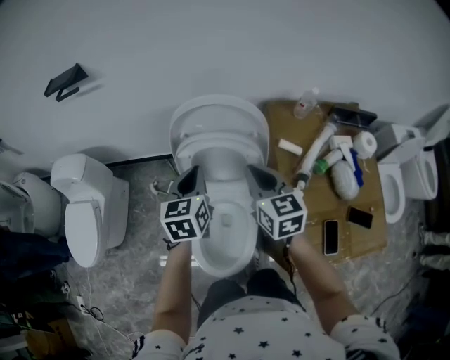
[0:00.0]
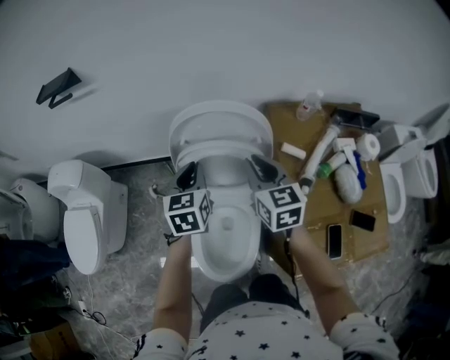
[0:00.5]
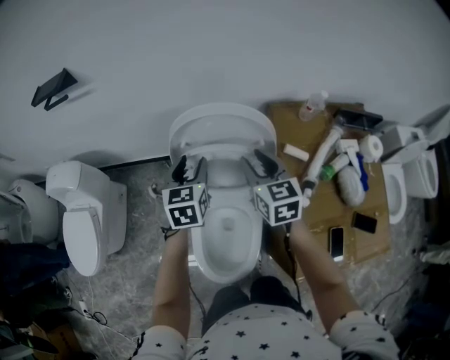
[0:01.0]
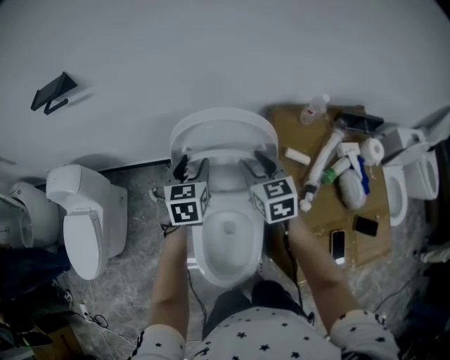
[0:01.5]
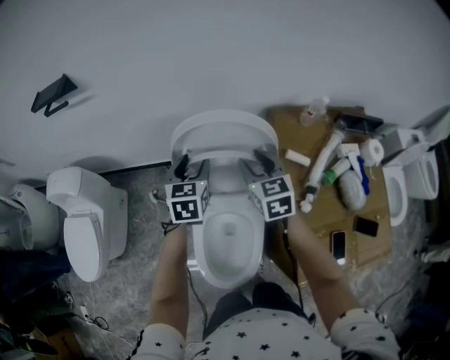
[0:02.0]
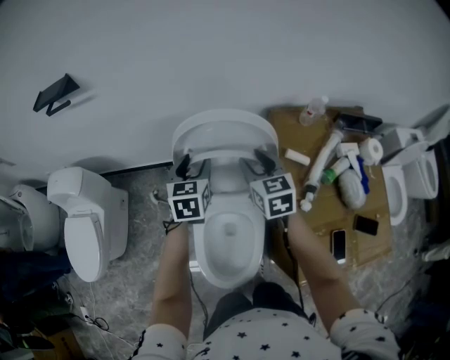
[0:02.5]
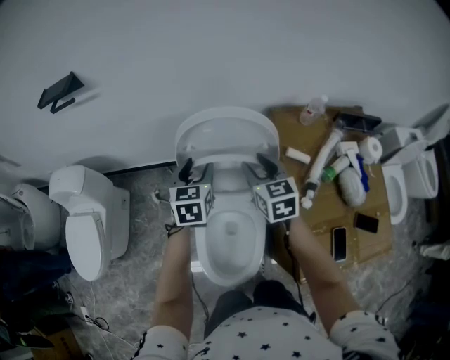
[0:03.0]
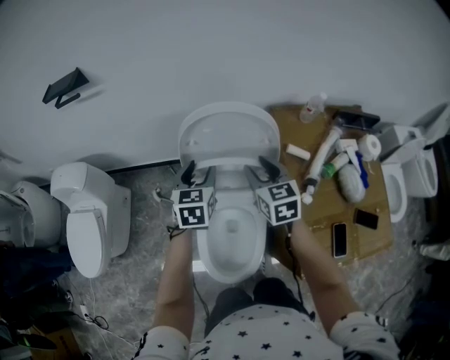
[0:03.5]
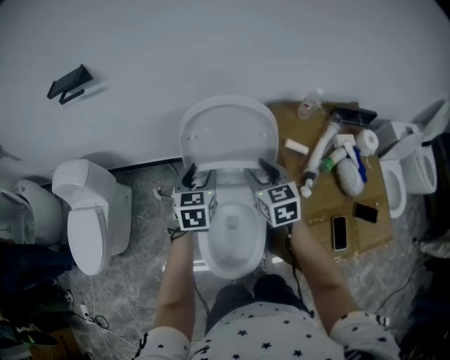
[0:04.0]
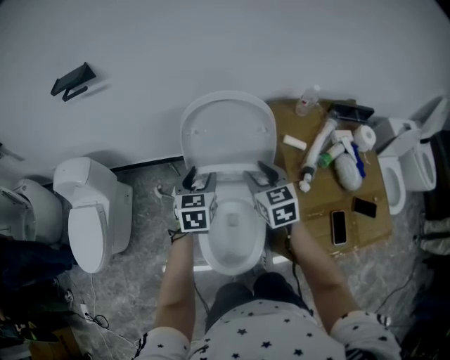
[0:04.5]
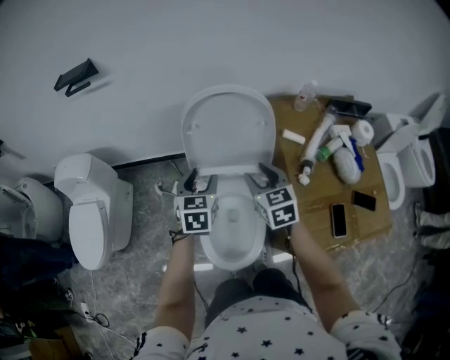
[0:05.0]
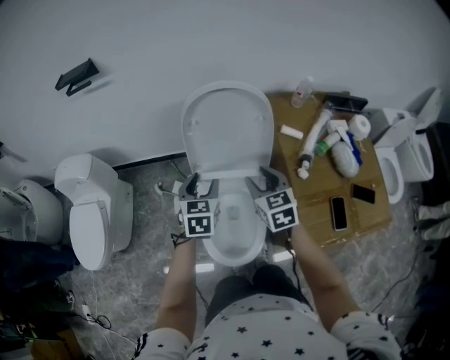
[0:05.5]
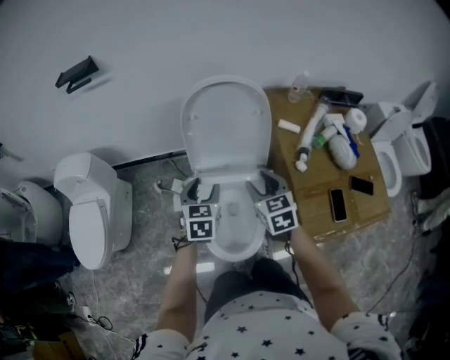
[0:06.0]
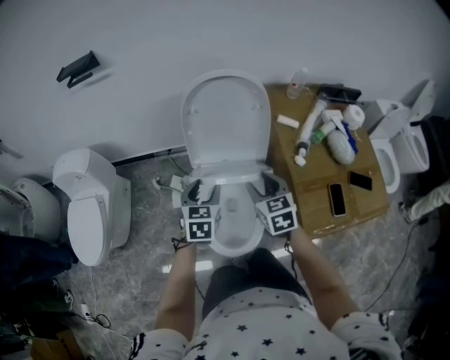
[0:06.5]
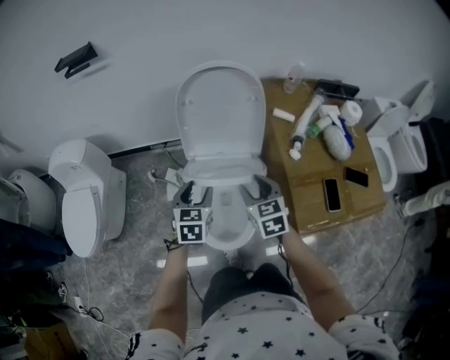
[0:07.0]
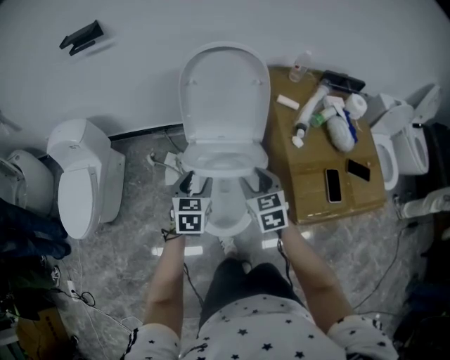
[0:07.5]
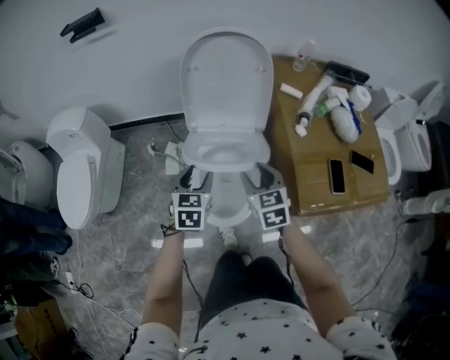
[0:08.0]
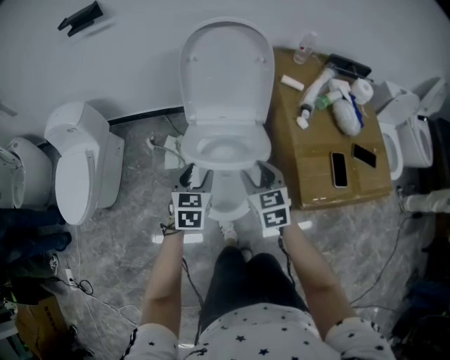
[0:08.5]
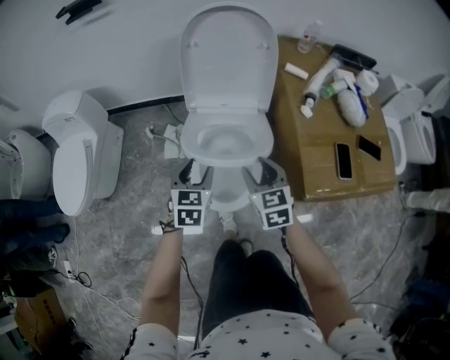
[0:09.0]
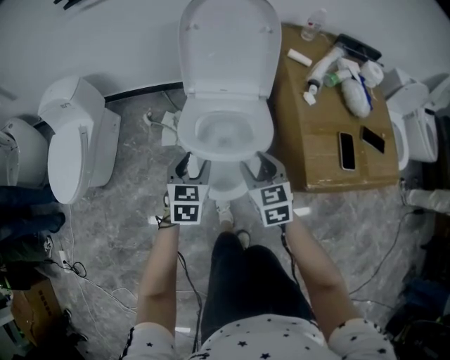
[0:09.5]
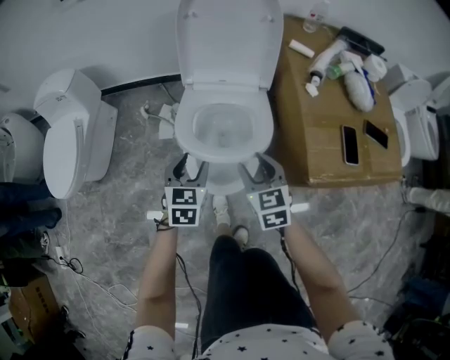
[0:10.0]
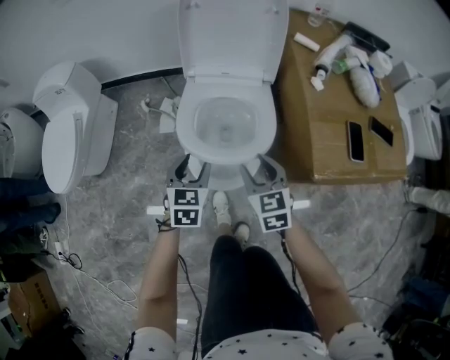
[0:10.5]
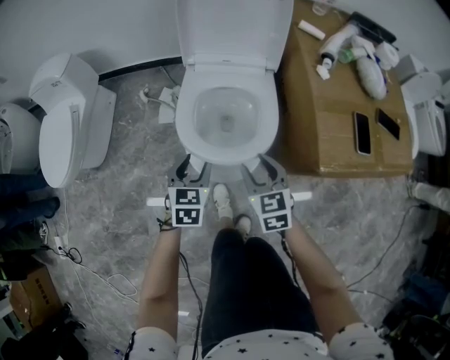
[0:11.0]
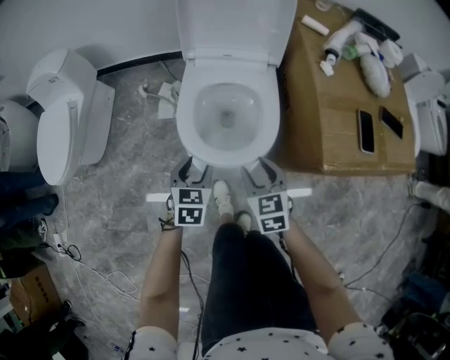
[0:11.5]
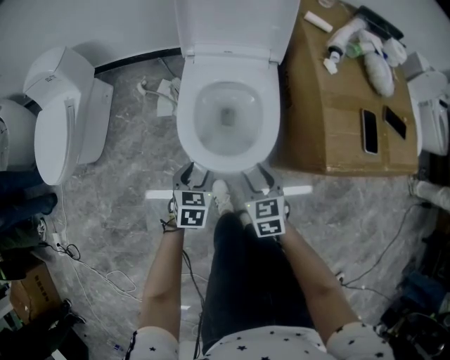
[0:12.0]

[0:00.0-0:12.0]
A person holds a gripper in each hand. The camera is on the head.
0:00.0 to 0:02.0: Both grippers travel together forward and downward, approximately 10 cm. The left gripper opens; the right gripper opens.
0:02.0 to 0:04.0: The two grippers go some 10 cm backward.
0:04.0 to 0:06.0: The grippers both shift backward by roughly 15 cm.
0:06.0 to 0:08.0: The grippers both shift backward and downward by some 15 cm.
0:08.0 to 0:10.0: Both grippers travel together backward and downward, about 10 cm.
0:10.0 to 0:12.0: Both grippers move downward and backward, about 15 cm.

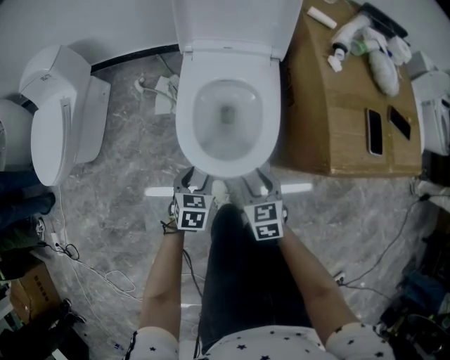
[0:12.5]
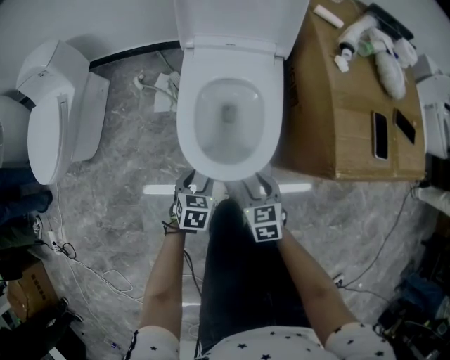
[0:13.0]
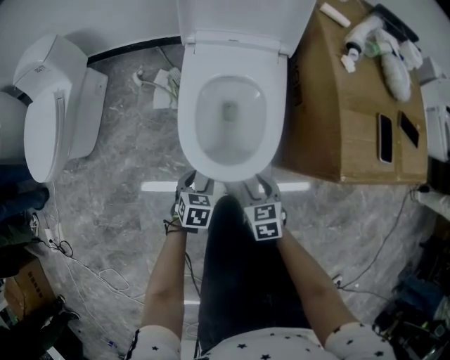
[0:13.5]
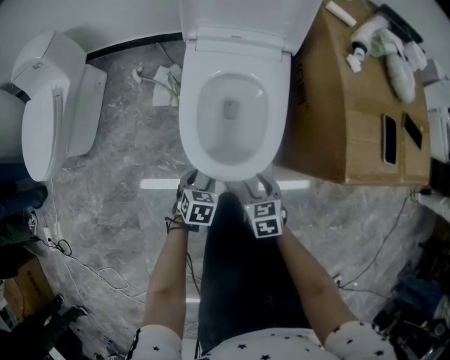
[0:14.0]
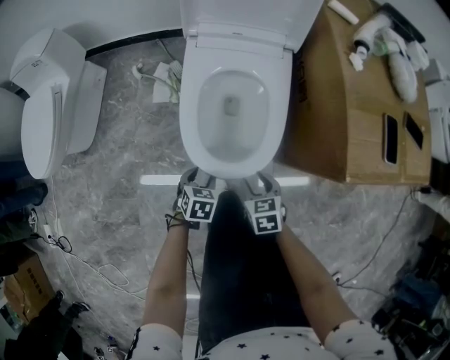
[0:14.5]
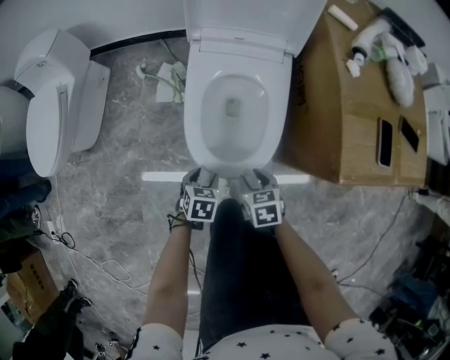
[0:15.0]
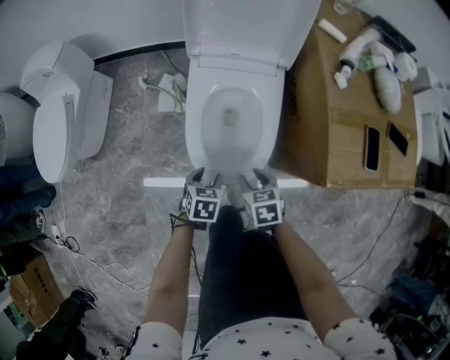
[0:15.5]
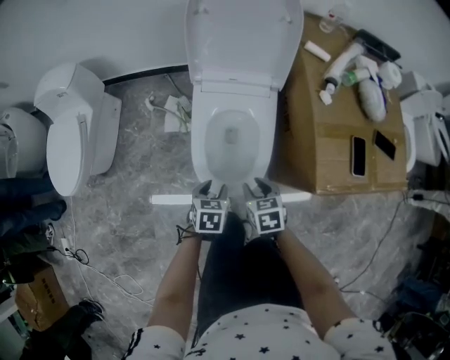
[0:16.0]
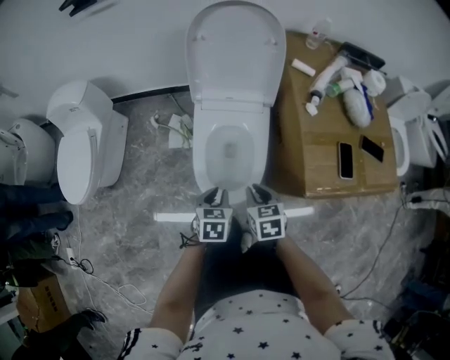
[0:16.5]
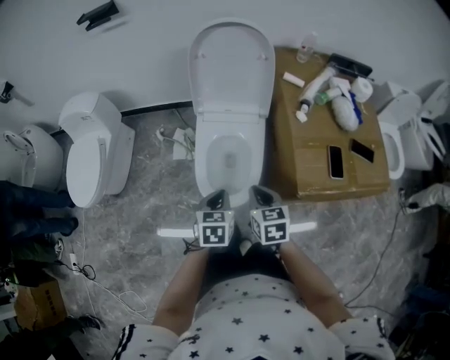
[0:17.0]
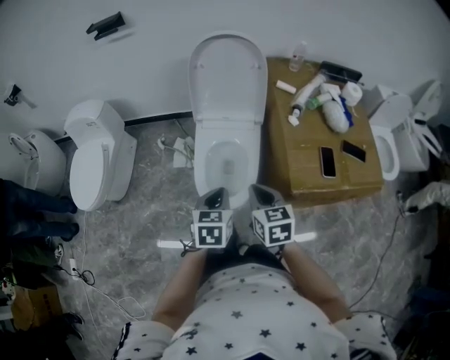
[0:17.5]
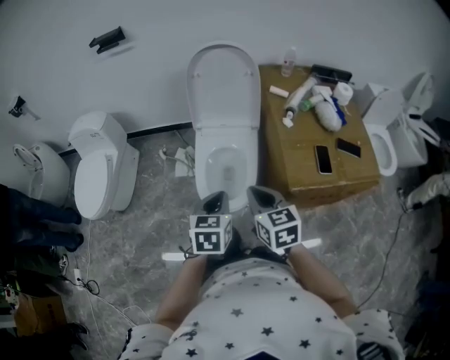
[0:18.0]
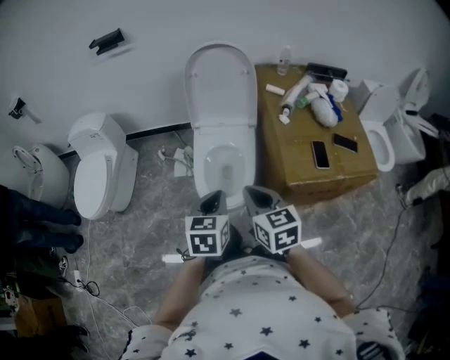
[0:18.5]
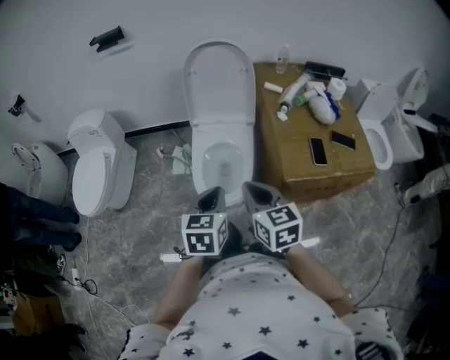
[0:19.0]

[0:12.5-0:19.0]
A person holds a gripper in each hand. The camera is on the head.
0:12.5 to 0:14.5: Both grippers move downward, roughly 10 cm.
0:14.5 to 0:17.0: The two grippers go roughly 35 cm upward. The left gripper rotates approximately 20 degrees, and closes. Meanwhile the right gripper closes.
0:17.0 to 0:19.0: The grippers both shift upward and backward by approximately 15 cm.

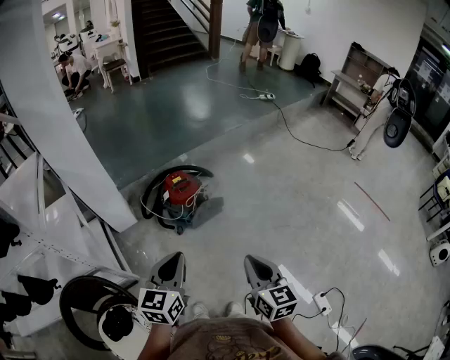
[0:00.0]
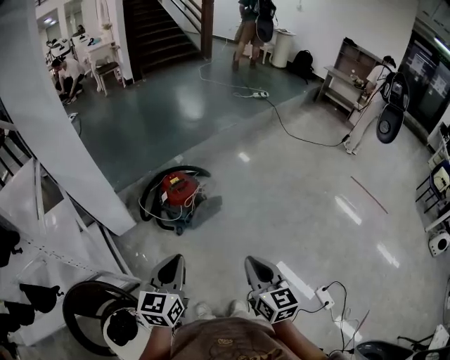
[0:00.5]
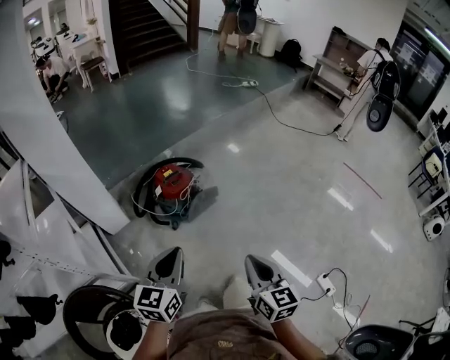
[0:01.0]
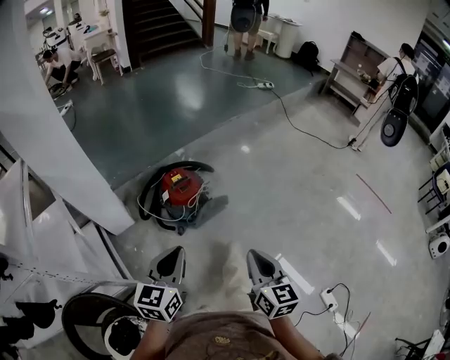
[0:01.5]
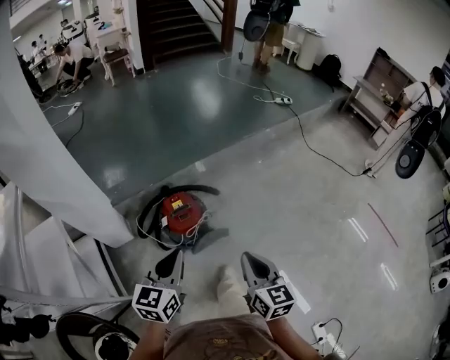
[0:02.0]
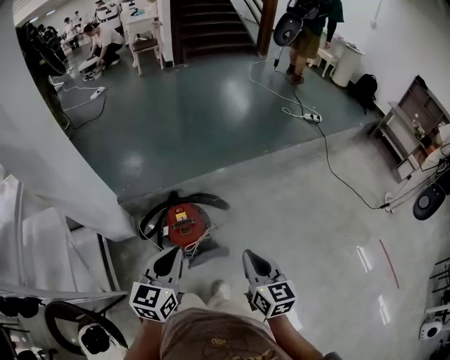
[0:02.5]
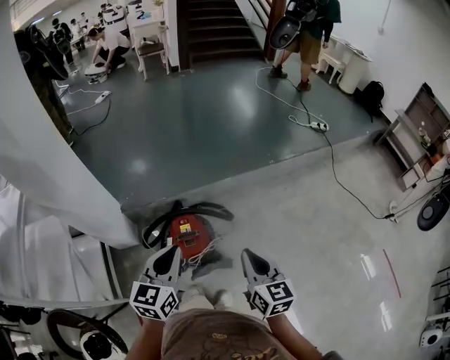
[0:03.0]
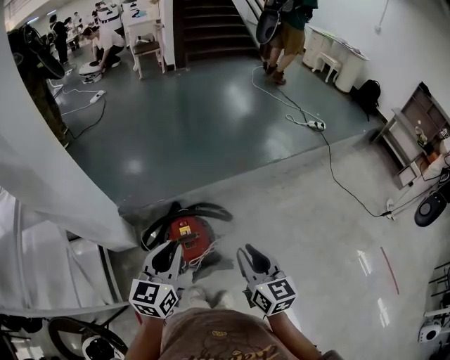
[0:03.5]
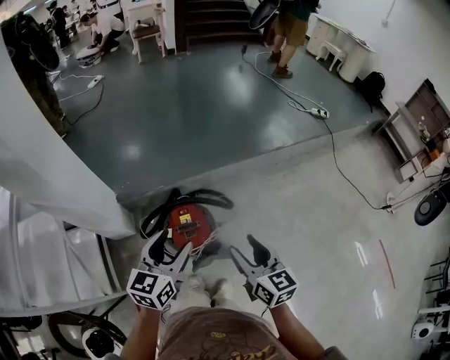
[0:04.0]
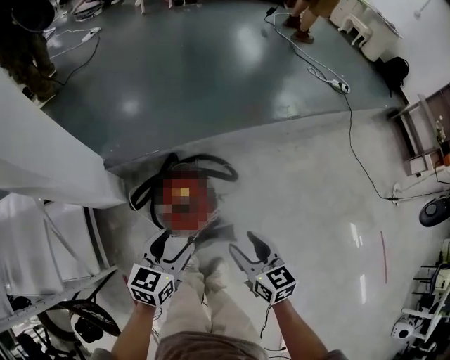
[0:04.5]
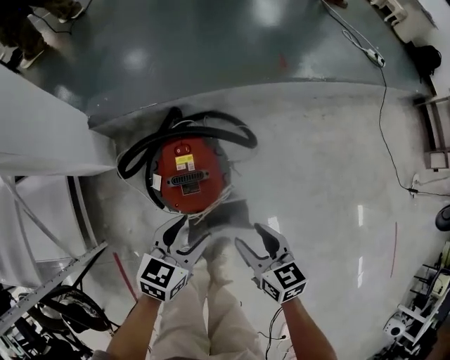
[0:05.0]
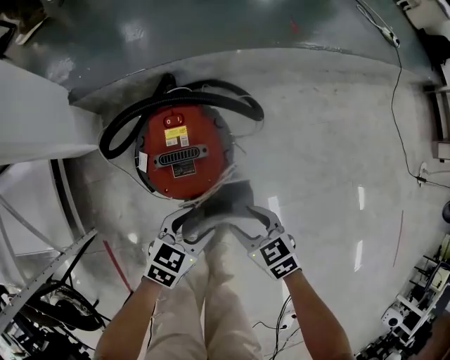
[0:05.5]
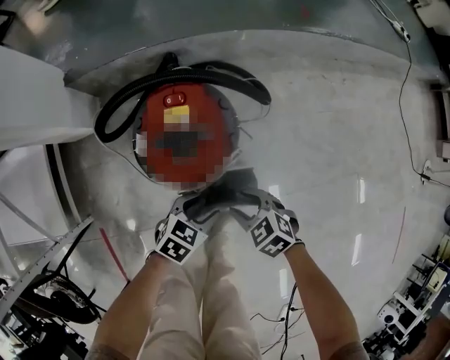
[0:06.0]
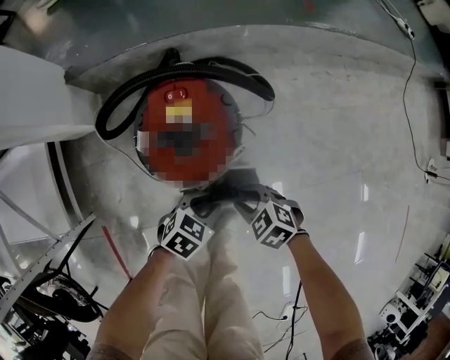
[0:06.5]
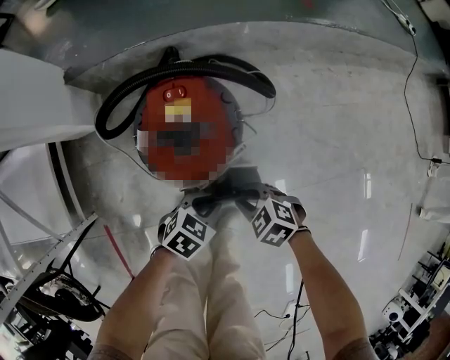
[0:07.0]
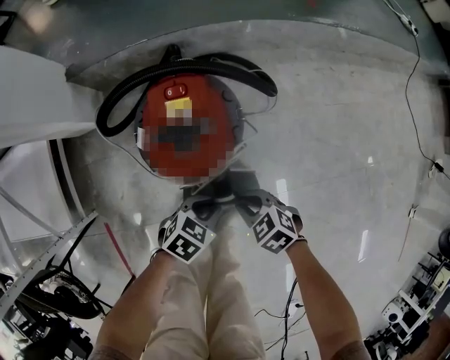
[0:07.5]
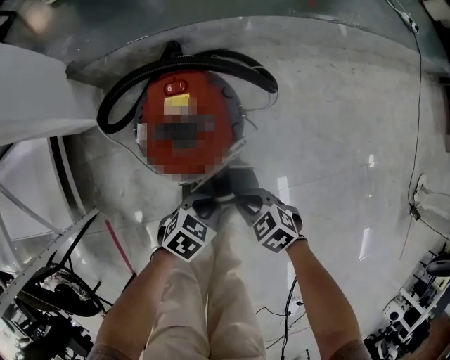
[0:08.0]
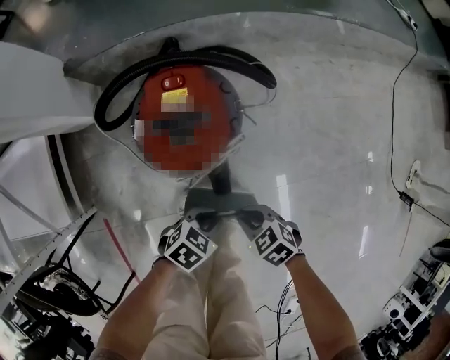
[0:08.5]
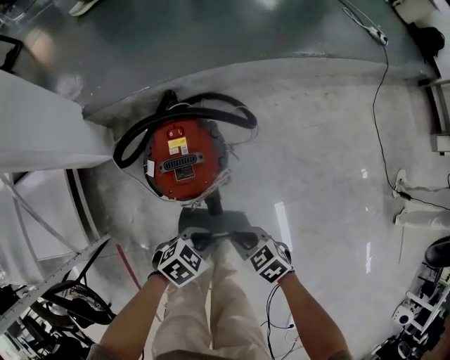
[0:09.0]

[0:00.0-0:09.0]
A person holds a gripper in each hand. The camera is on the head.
0:00.0 to 0:02.0: The two grippers go some 25 cm forward.
0:02.0 to 0:04.5: The two grippers go some 25 cm forward and downward. The left gripper opens up; the right gripper changes its angle by approximately 30 degrees, and opens up.
0:04.5 to 0:07.0: The grippers both shift downward by about 40 cm. The right gripper points its fingers some 30 degrees further downward, and closes its fingers. Meanwhile the left gripper rotates approximately 40 degrees, and closes.
0:07.0 to 0:09.0: Both grippers travel together upward, some 10 cm. The right gripper swivels about 20 degrees.
